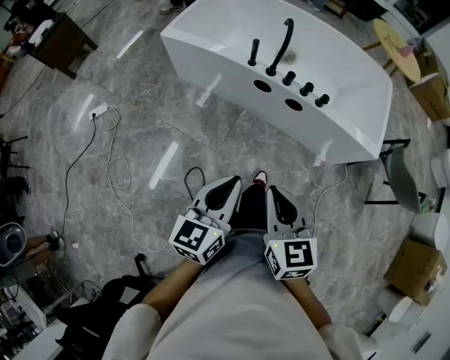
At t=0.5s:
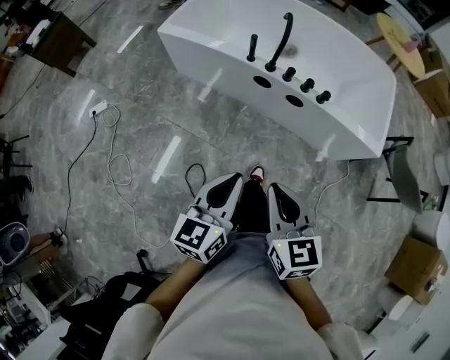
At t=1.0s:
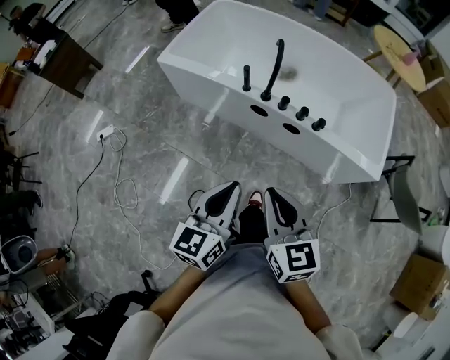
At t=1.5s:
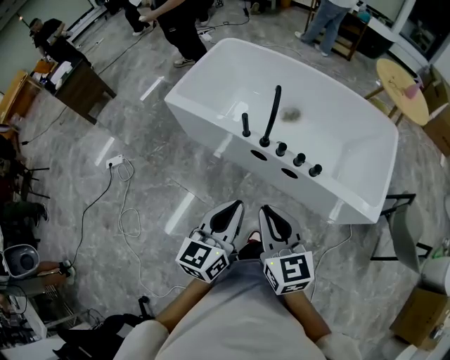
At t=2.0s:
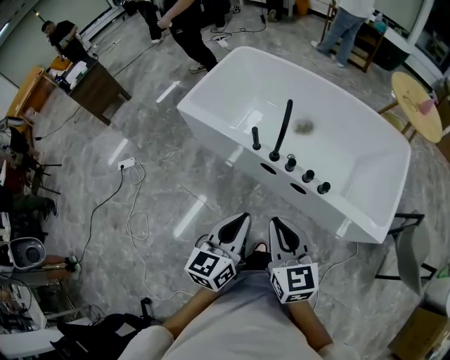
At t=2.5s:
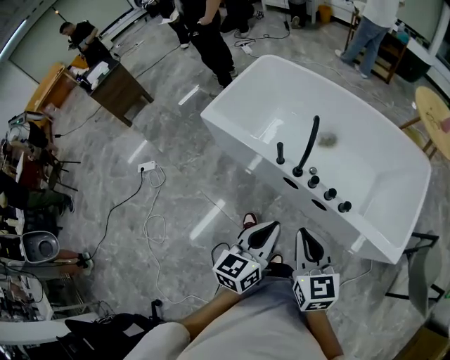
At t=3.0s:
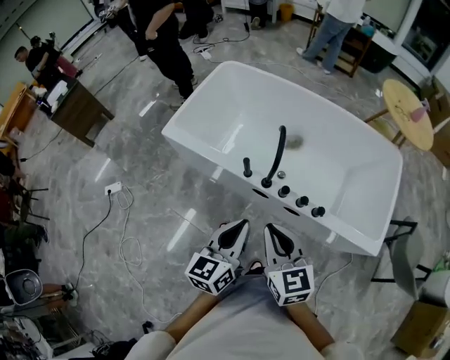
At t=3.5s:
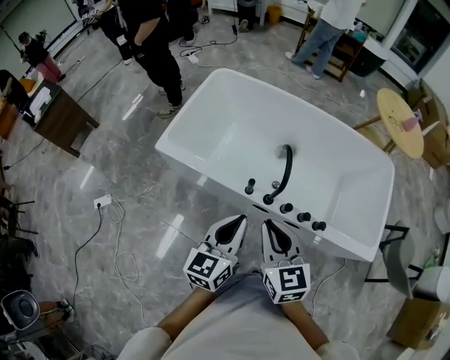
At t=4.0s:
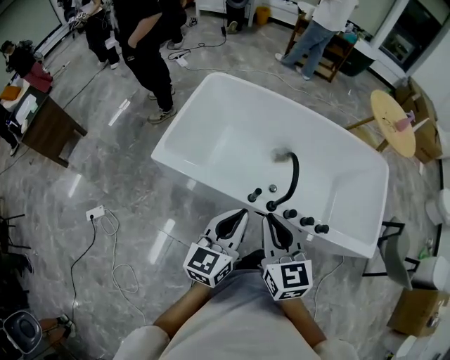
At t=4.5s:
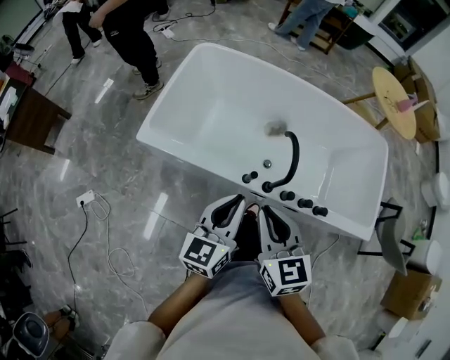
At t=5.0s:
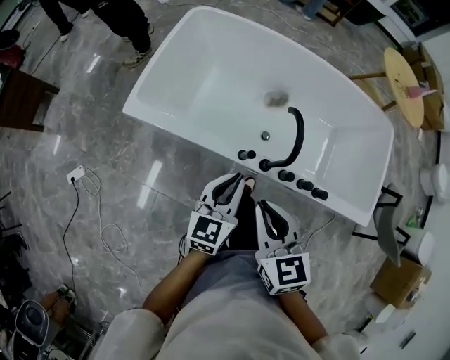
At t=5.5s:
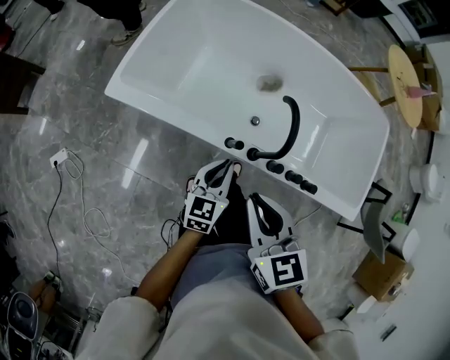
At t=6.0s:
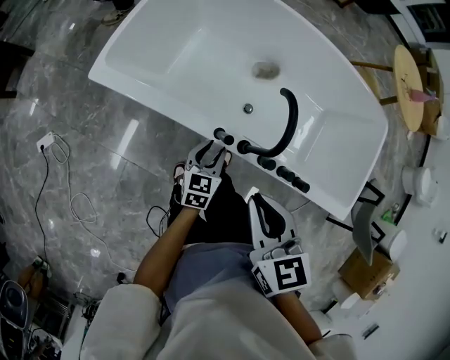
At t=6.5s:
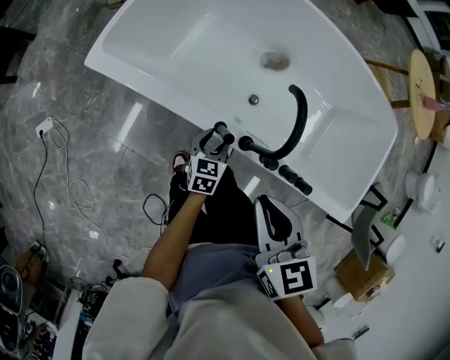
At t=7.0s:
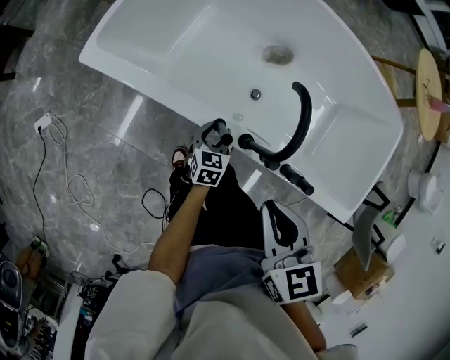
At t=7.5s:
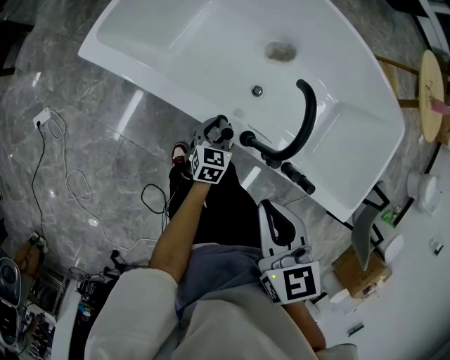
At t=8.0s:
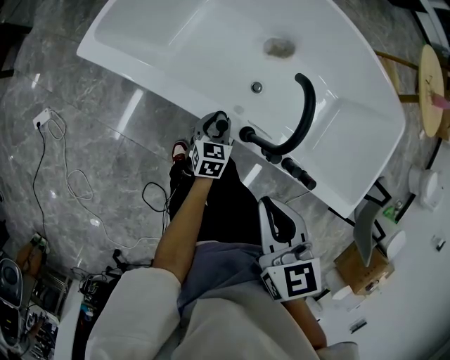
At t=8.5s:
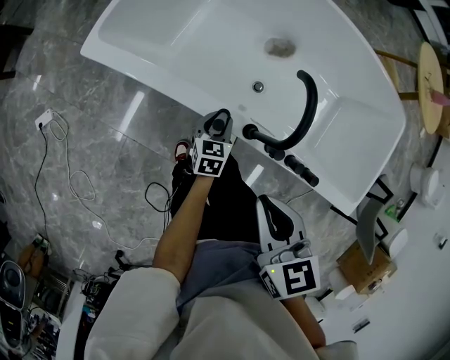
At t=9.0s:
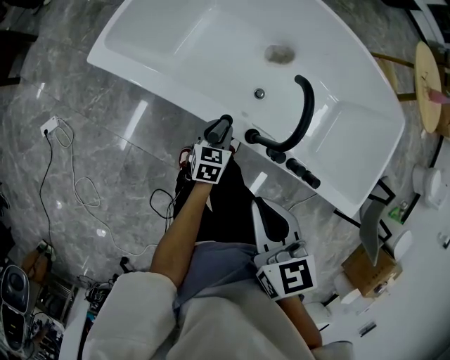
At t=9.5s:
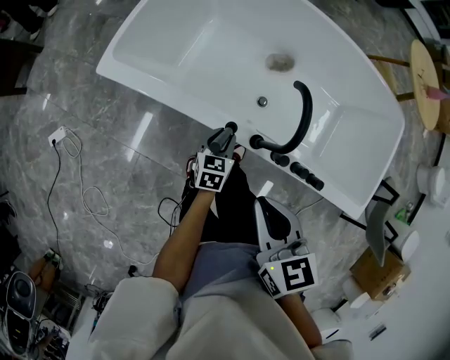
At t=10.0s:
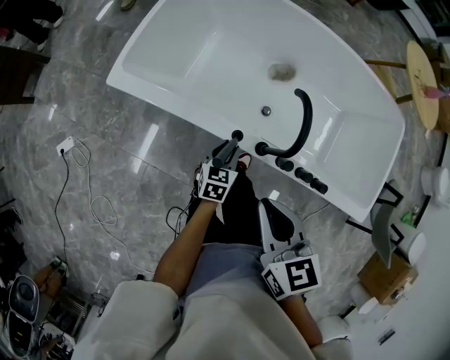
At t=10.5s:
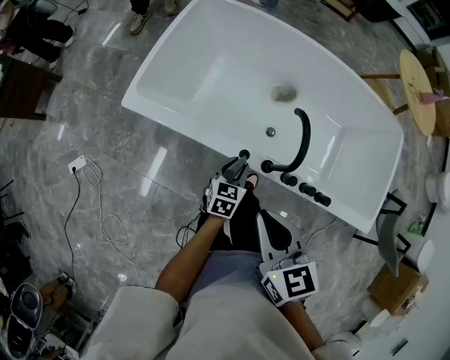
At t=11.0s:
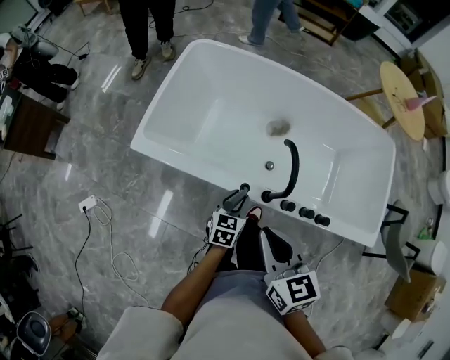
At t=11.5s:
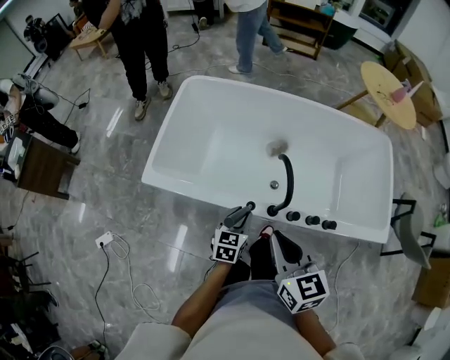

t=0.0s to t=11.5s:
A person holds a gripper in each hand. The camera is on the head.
t=0.0s to t=2.0s: The left gripper heads forward and to the right, covering about 25 cm. Meanwhile the right gripper travels forward by some 25 cm.
t=2.0s to t=4.0s: The two grippers go approximately 30 cm forward and to the left.
t=4.0s to t=6.0s: The left gripper heads downward, covering about 35 cm, swivels about 30 degrees, and opens, while the right gripper is displaced downward and to the right by approximately 15 cm, and swivels approximately 20 degrees.
t=6.0s to t=7.5s: The left gripper heads downward, covering approximately 10 cm; the right gripper shifts by approximately 5 cm.
t=7.5s to t=9.5s: The right gripper shifts by about 5 cm, while the left gripper is displaced upward by approximately 5 cm.
t=9.5s to t=11.5s: The right gripper heads upward, covering roughly 10 cm, and swivels roughly 20 degrees, while the left gripper shifts about 15 cm upward.

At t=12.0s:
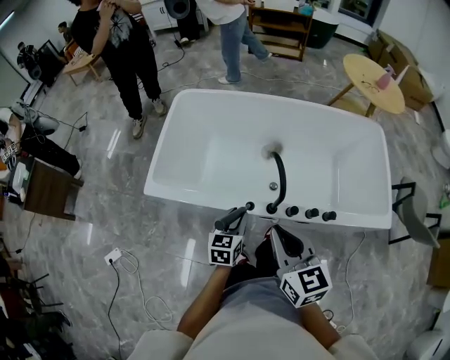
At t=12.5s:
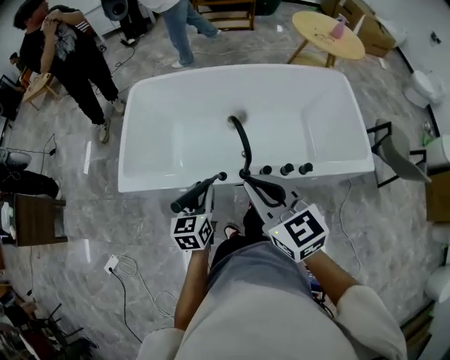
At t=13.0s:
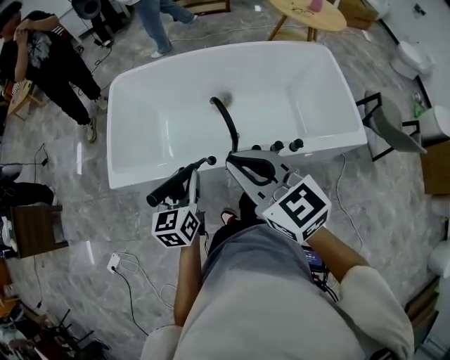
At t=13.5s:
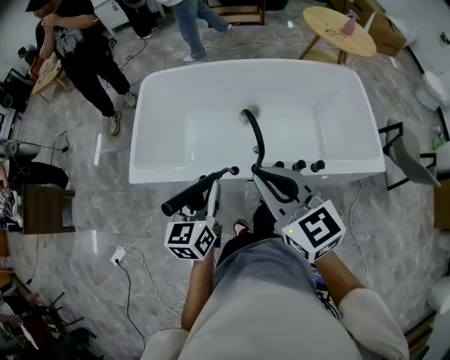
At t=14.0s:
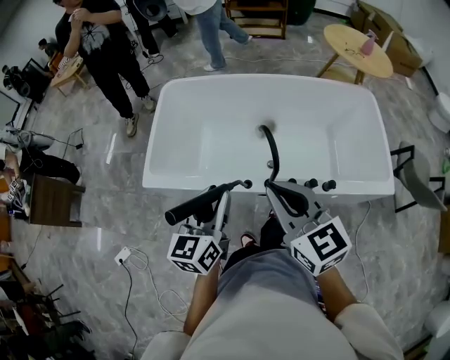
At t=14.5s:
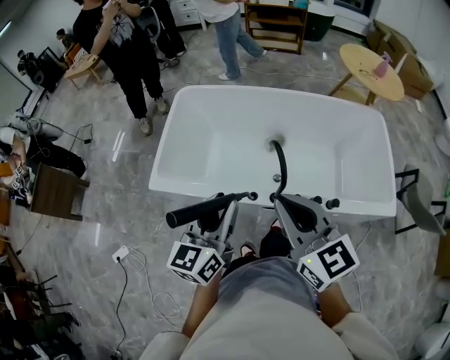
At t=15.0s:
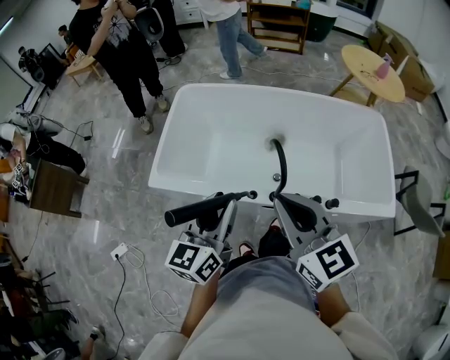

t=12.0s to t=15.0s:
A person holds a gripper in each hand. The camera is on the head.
t=12.0s to t=13.5s: The left gripper heads upward, covering approximately 15 cm. The right gripper goes about 5 cm upward.
t=13.5s to t=15.0s: The left gripper heads upward, covering about 10 cm.

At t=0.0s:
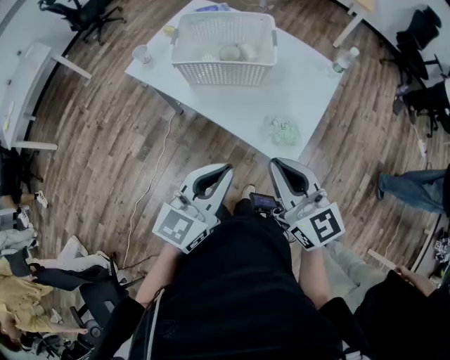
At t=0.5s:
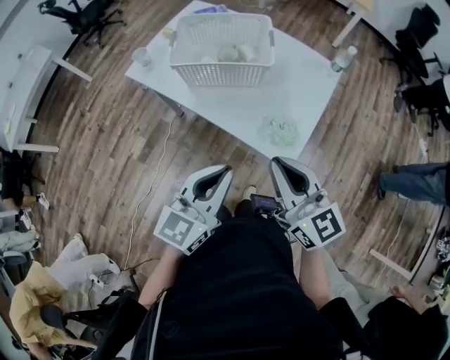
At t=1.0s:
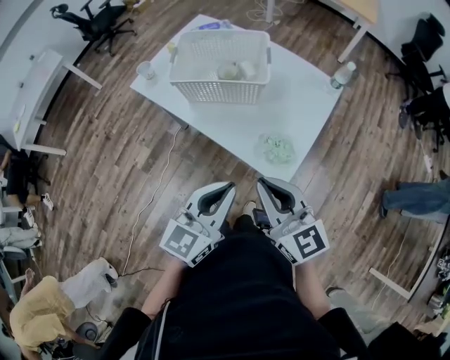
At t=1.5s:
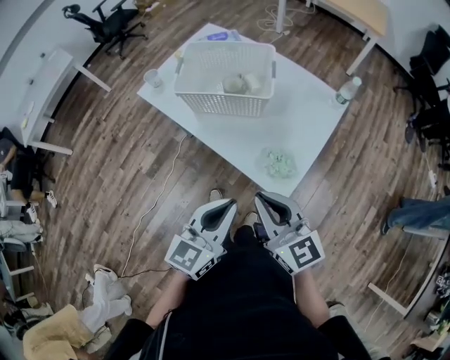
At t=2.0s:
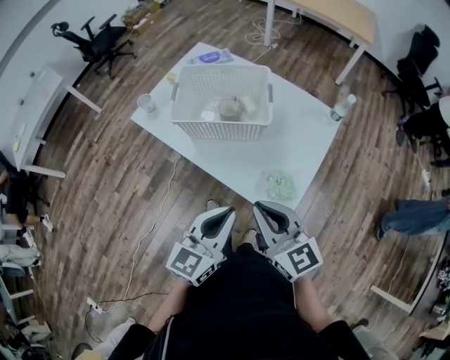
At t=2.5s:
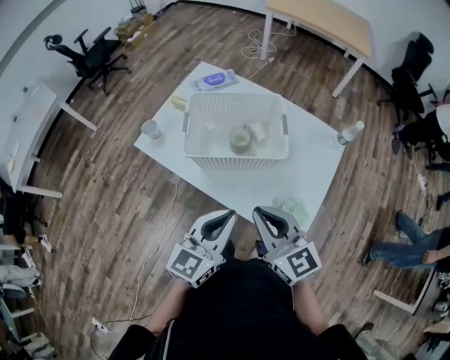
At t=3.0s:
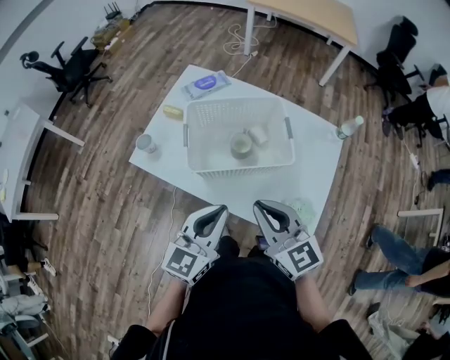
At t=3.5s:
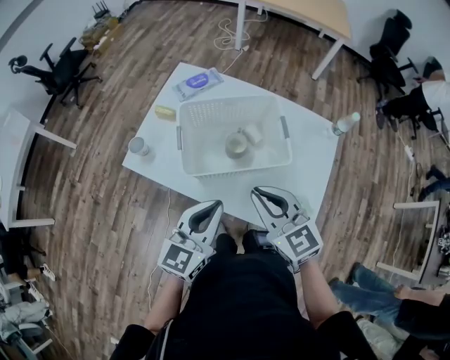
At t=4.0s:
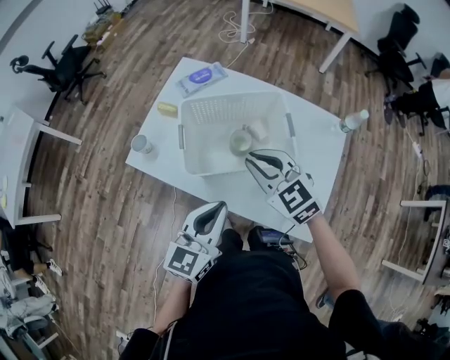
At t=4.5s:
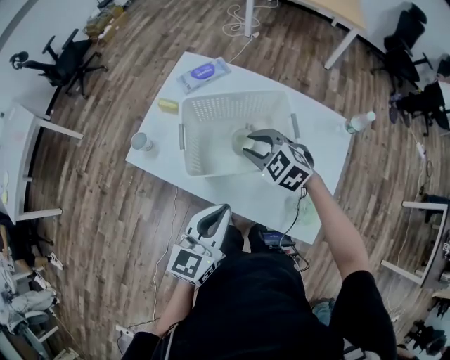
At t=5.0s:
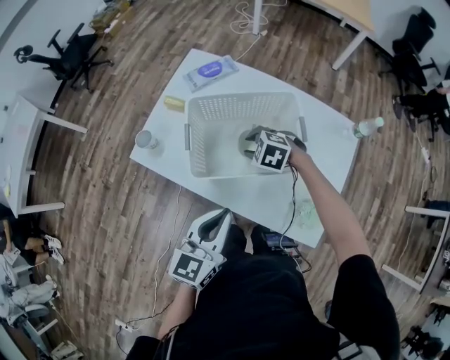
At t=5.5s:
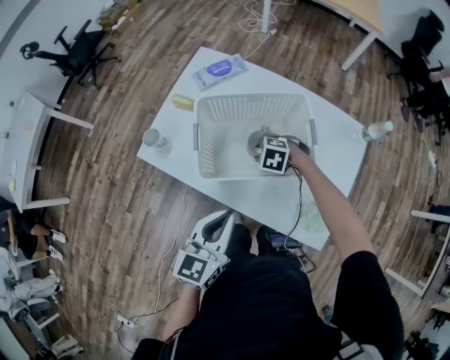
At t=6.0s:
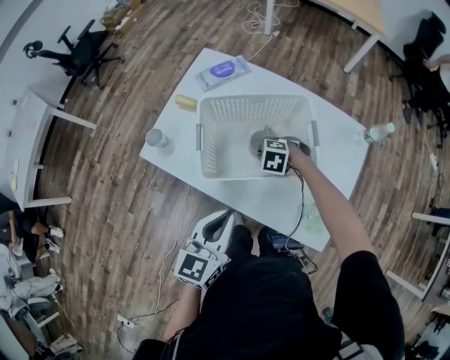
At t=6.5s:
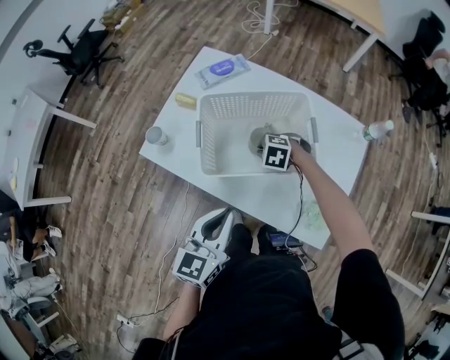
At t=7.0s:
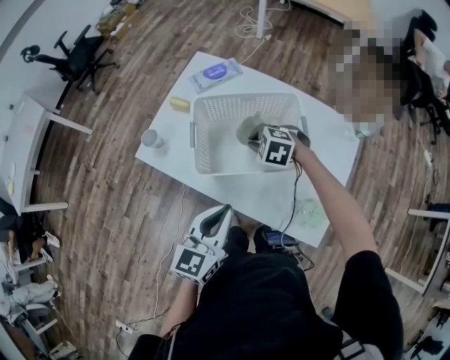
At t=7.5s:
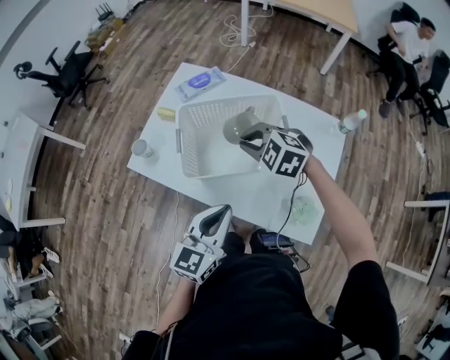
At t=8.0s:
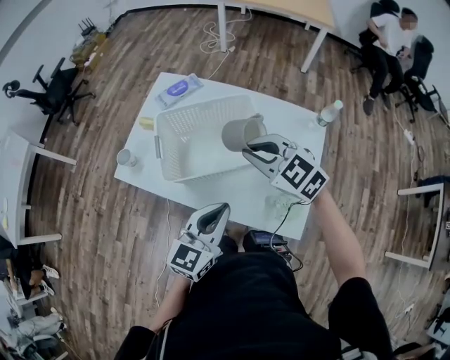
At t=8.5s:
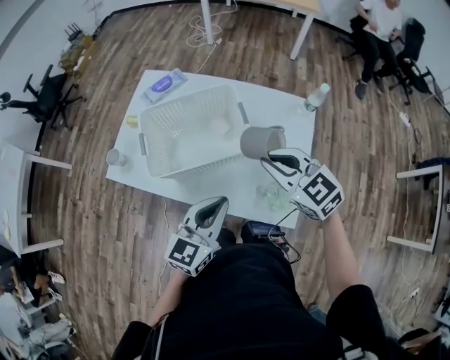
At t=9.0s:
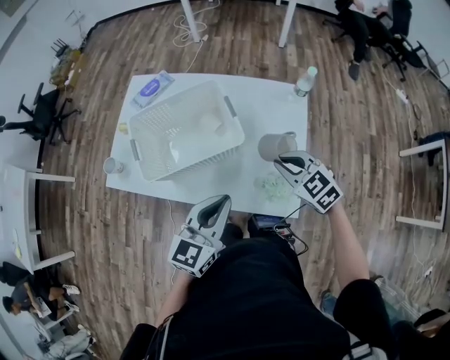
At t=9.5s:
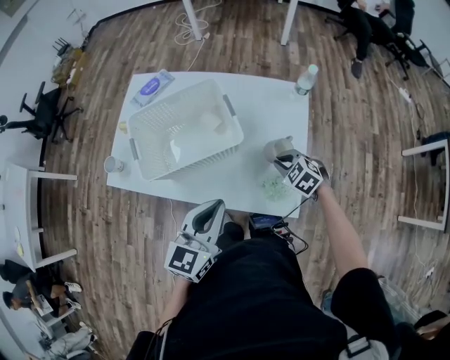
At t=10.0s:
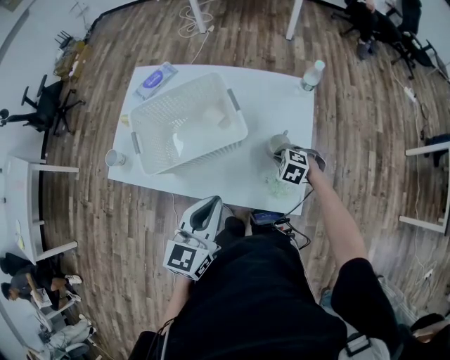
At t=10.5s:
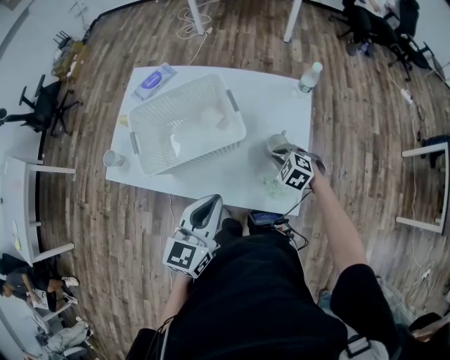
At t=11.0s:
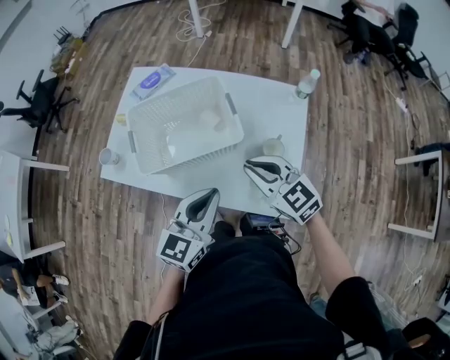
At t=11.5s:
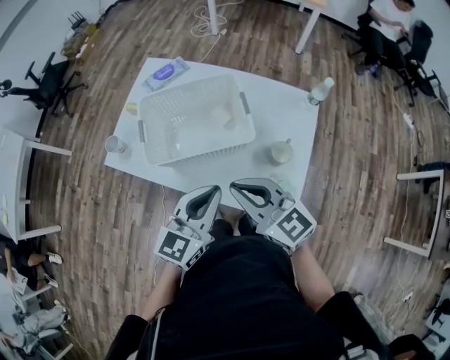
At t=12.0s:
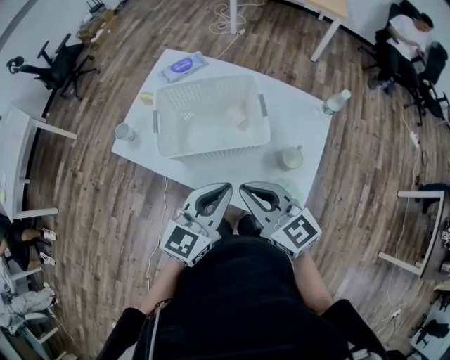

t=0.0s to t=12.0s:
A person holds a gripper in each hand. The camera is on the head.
t=0.0s to t=2.0s: Both grippers move forward, approximately 5 cm.
t=2.0s to t=4.0s: The grippers both shift forward and to the left by some 25 cm. The right gripper changes its angle by some 20 degrees.
t=4.0s to t=6.0s: The right gripper goes about 25 cm downward, and tilts its fingers about 50 degrees downward.
t=6.0s to t=8.0s: The right gripper is displaced upward by approximately 25 cm, and tilts its fingers about 40 degrees upward; the left gripper ends up about 10 cm from where it was.
t=8.0s to t=10.0s: The right gripper travels downward and to the right by roughly 35 cm, and points its fingers some 40 degrees further downward.
t=10.0s to t=12.0s: The right gripper heads upward and to the left, covering about 35 cm, and angles its fingers upward, by roughly 60 degrees.
